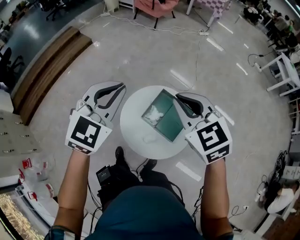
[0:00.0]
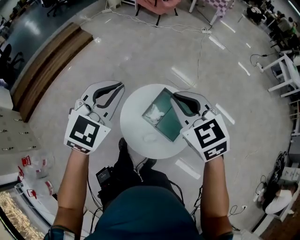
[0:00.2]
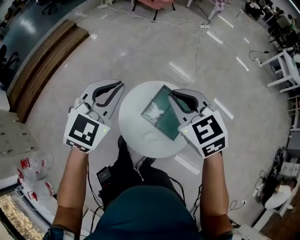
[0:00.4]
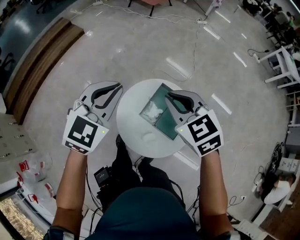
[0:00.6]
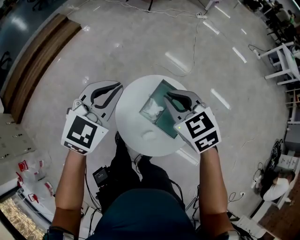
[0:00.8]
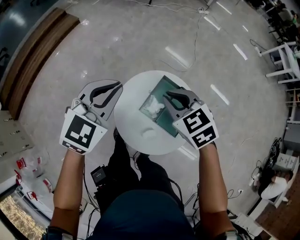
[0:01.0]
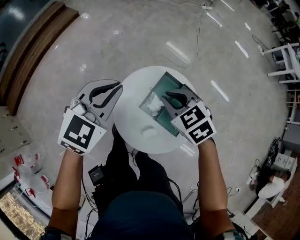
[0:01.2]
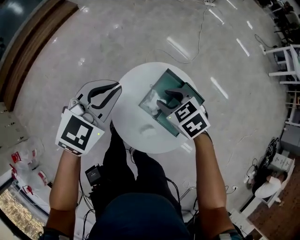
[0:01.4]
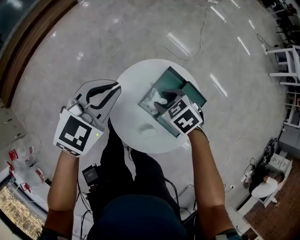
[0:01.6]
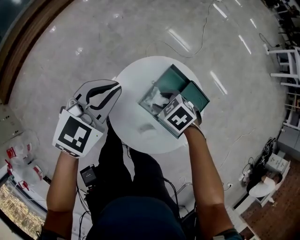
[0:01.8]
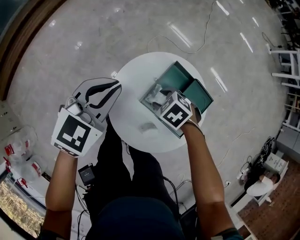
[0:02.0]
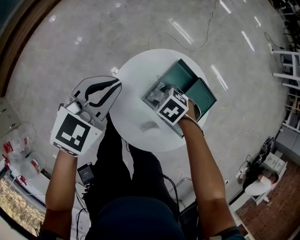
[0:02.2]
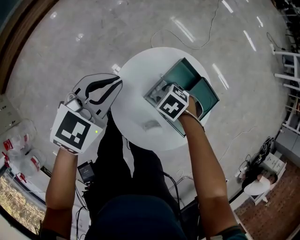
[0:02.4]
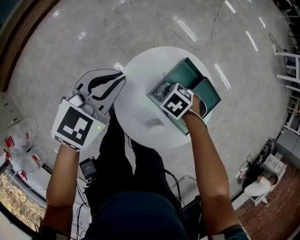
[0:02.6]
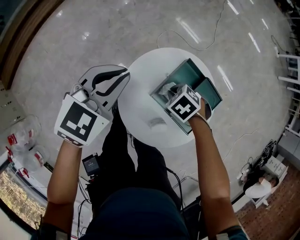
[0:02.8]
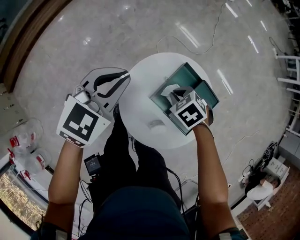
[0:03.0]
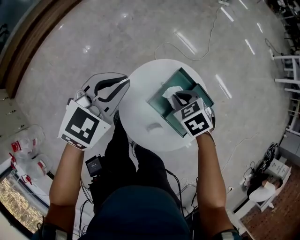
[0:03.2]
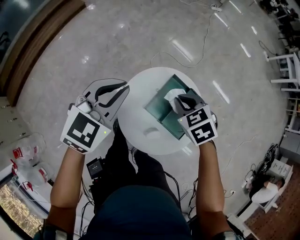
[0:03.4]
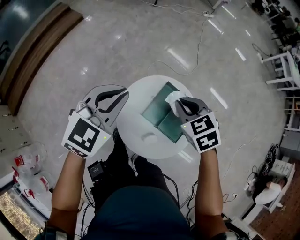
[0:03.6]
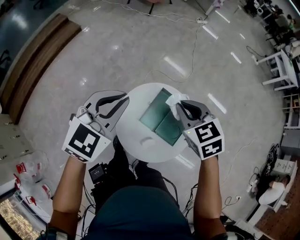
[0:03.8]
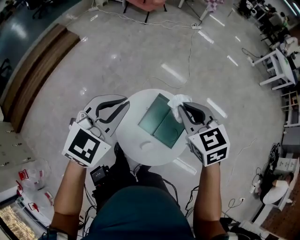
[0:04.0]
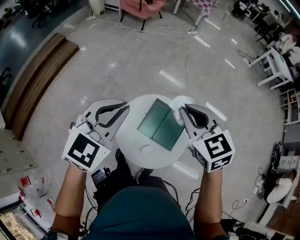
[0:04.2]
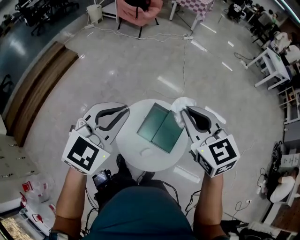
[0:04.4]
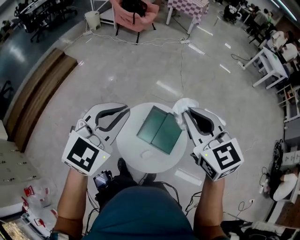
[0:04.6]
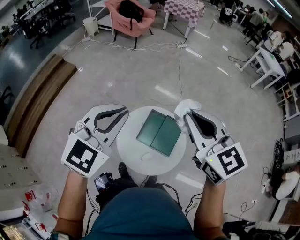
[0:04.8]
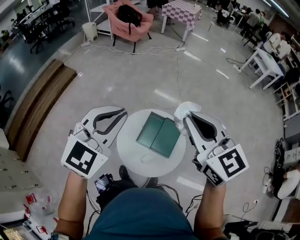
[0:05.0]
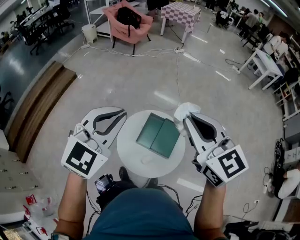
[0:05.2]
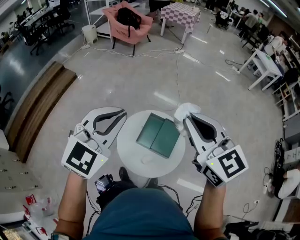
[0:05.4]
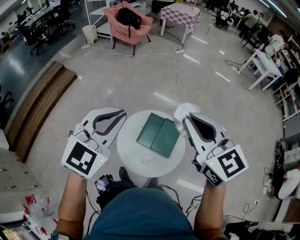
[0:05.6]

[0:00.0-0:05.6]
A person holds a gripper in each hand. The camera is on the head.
0:00.0 to 0:01.4: The right gripper goes about 35 cm downward, turns by some 30 degrees, and opens its fingers, while the left gripper is displaced downward and forward by roughly 30 cm.
0:01.4 to 0:02.8: The left gripper moves downward, some 10 cm. Meanwhile the right gripper shifts about 20 cm downward, changes its angle by roughly 30 degrees, and closes its fingers.
0:02.8 to 0:04.2: The two grippers go about 40 cm upward. The right gripper points its fingers roughly 50 degrees further upward, while the left gripper turns by some 20 degrees.
0:04.2 to 0:05.6: Both grippers travel together upward and backward, approximately 20 cm.

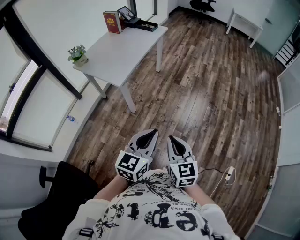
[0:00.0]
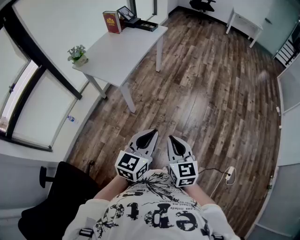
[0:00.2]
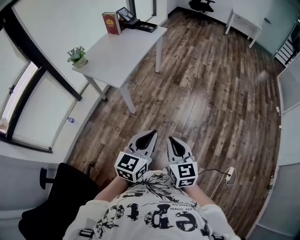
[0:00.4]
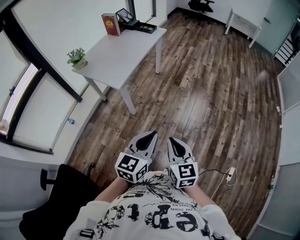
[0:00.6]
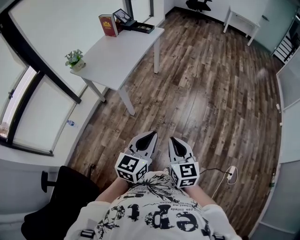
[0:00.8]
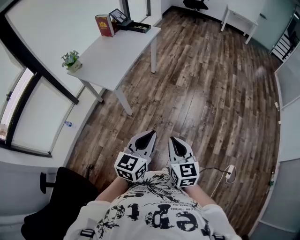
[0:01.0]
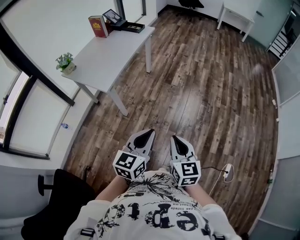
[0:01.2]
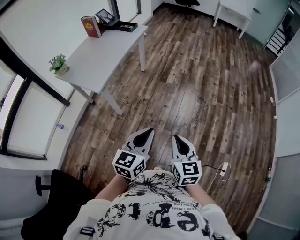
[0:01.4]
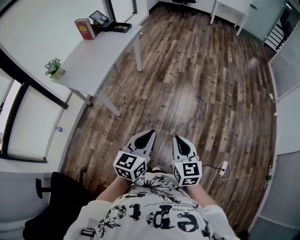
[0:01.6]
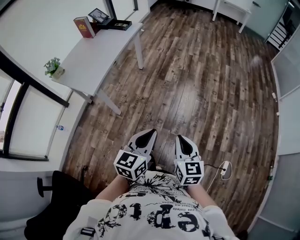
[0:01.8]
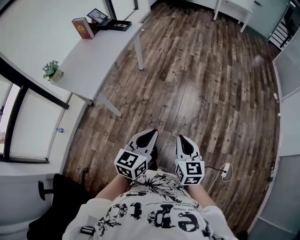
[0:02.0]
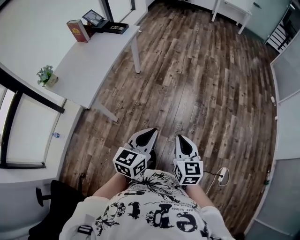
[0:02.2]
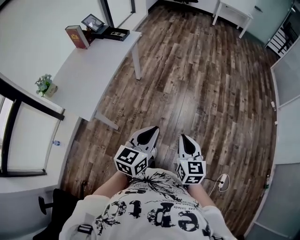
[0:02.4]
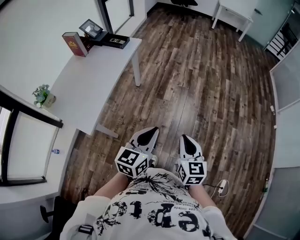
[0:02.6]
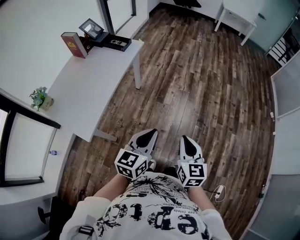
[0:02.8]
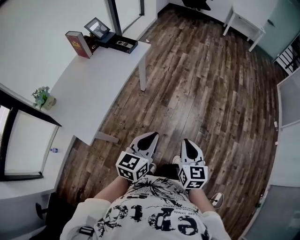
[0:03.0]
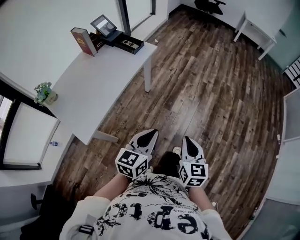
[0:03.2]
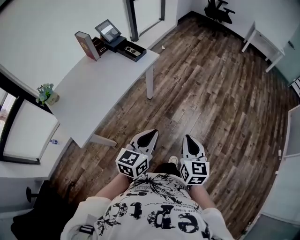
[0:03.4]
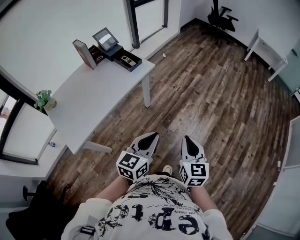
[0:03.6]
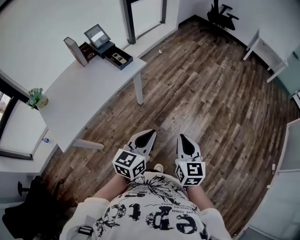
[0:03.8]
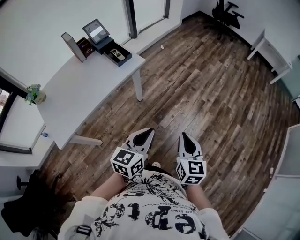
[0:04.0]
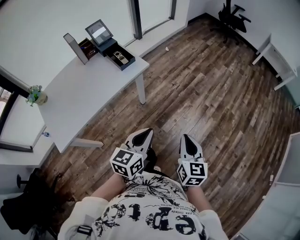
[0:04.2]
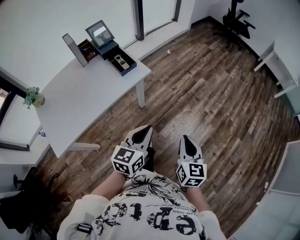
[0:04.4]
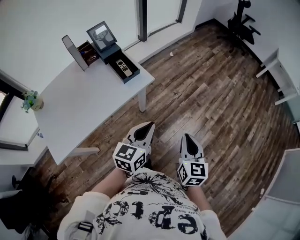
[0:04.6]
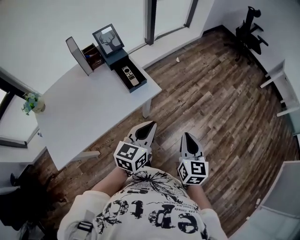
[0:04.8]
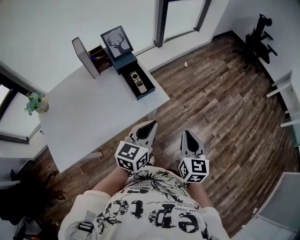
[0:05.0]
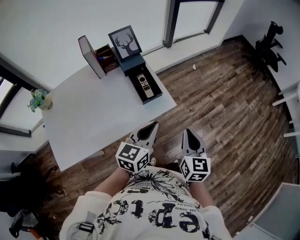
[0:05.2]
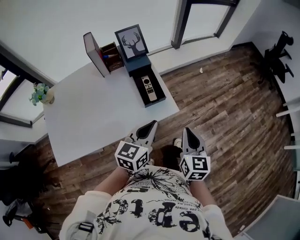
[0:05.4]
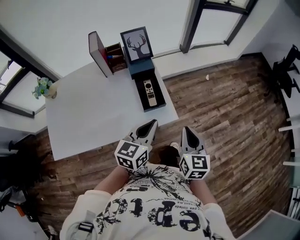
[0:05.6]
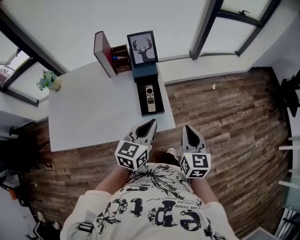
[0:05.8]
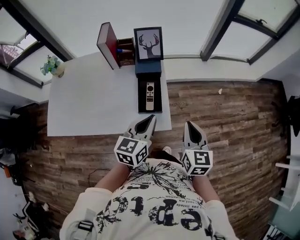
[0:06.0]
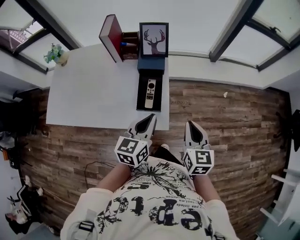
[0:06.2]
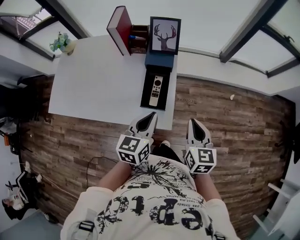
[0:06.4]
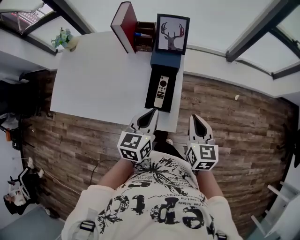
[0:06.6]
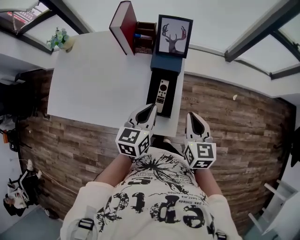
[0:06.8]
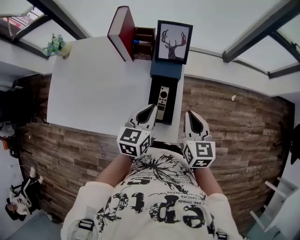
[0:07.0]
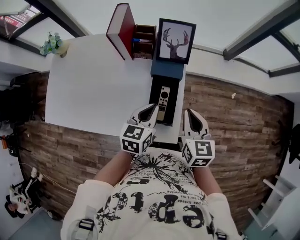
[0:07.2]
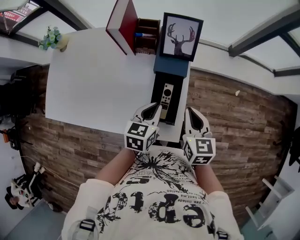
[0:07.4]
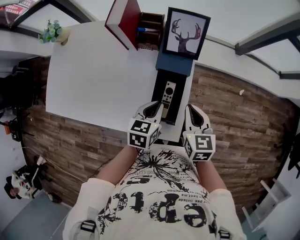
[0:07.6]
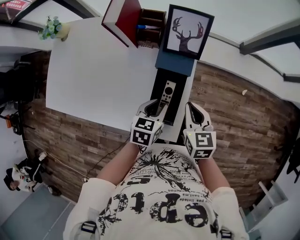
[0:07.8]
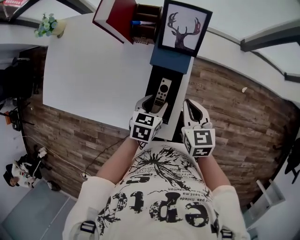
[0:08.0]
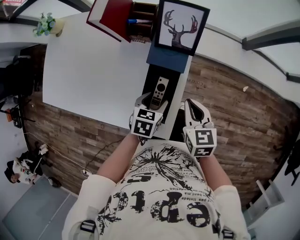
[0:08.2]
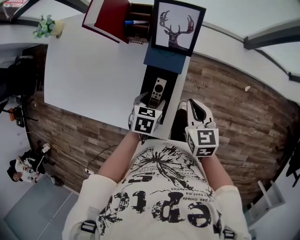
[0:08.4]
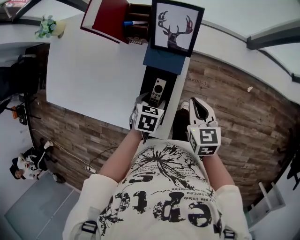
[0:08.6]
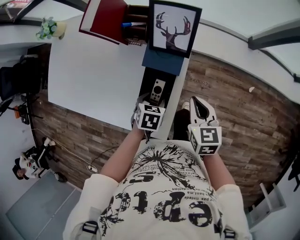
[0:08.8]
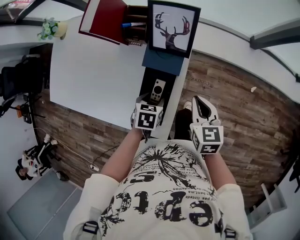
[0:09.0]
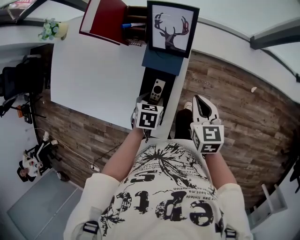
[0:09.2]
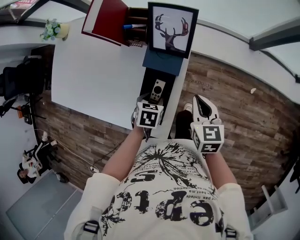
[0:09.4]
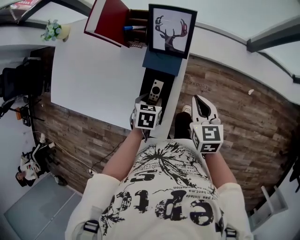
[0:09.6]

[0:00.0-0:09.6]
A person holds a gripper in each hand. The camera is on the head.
0:00.0 to 0:01.6: The left gripper travels to the right and forward by some 15 cm; the right gripper shifts about 15 cm to the right.
0:01.6 to 0:03.2: The pair of grippers is taken forward, about 50 cm.
0:03.2 to 0:04.8: Both grippers are carried forward, approximately 50 cm. The left gripper changes its angle by about 20 degrees.
0:04.8 to 0:06.4: The left gripper ends up roughly 25 cm from where it was, and swivels about 50 degrees. The right gripper shifts by some 40 cm, and rotates approximately 50 degrees.
0:06.4 to 0:08.0: The left gripper travels downward and forward by some 20 cm, rotates approximately 30 degrees, and opens its fingers. The right gripper goes roughly 20 cm forward, downward and to the left, and rotates about 20 degrees.
0:08.0 to 0:09.6: The right gripper travels to the right by about 5 cm.

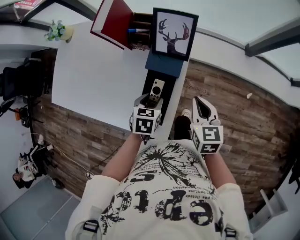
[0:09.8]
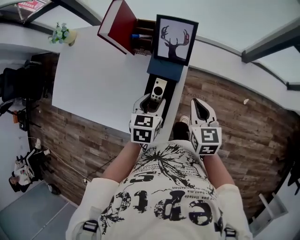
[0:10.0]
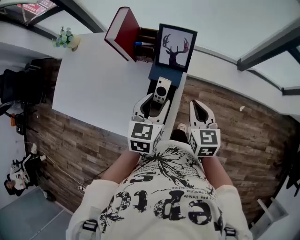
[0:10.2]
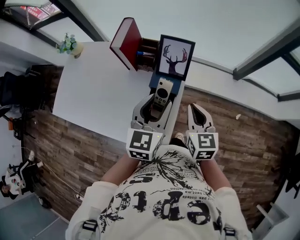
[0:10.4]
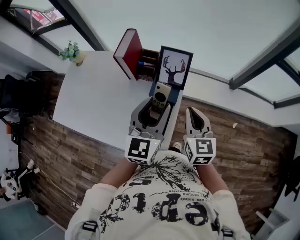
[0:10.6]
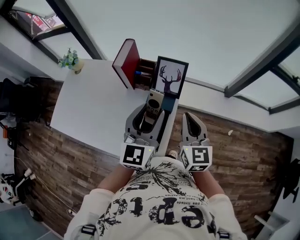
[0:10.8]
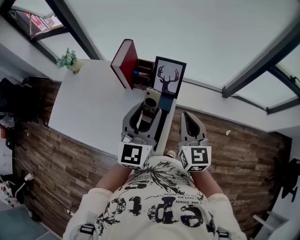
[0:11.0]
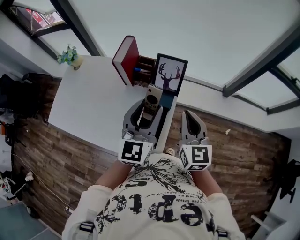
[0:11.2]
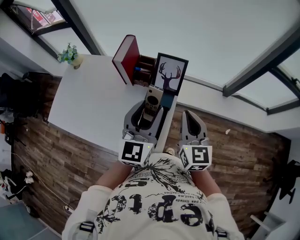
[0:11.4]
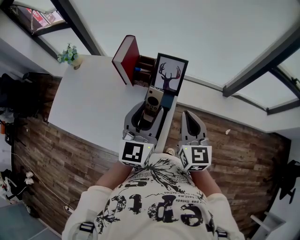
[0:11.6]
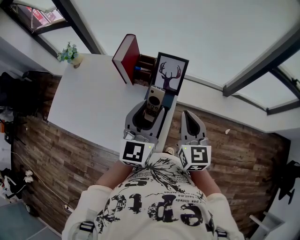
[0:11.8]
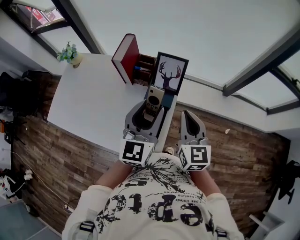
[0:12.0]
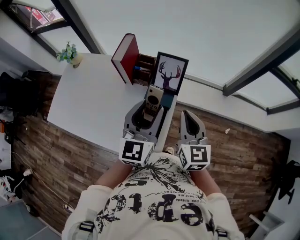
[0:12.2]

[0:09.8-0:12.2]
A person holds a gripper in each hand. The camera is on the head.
0:09.8 to 0:11.0: The right gripper is displaced upward by about 15 cm, and swivels approximately 30 degrees. Meanwhile the left gripper heads upward, covering some 30 cm, and tilts its fingers some 60 degrees upward.
0:11.0 to 0:12.2: There are only small adjustments of the grippers.

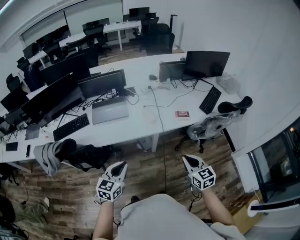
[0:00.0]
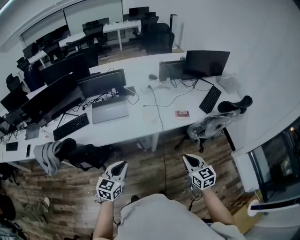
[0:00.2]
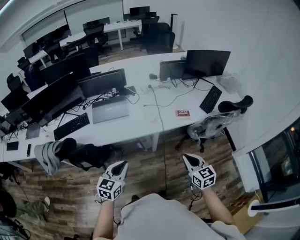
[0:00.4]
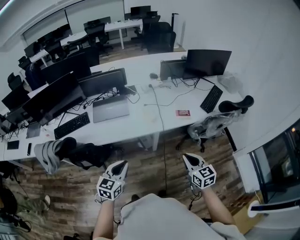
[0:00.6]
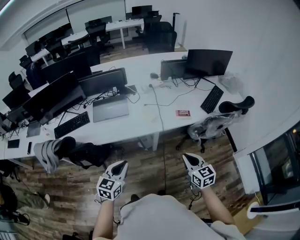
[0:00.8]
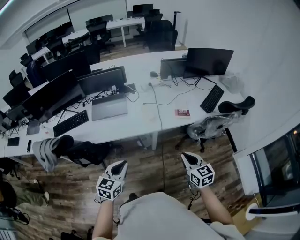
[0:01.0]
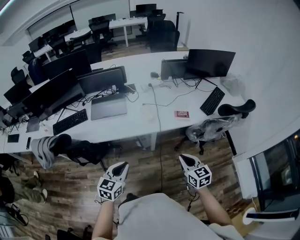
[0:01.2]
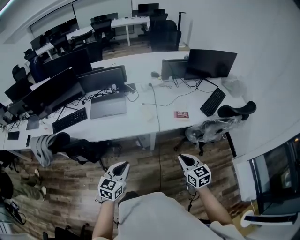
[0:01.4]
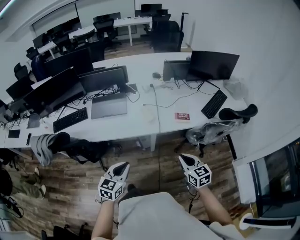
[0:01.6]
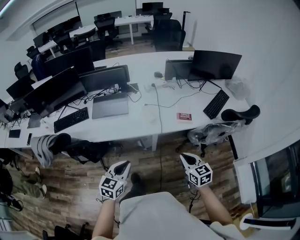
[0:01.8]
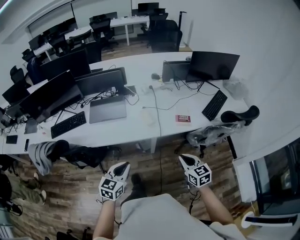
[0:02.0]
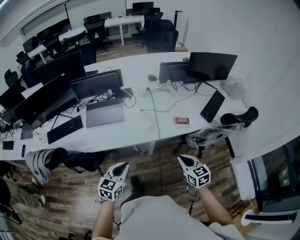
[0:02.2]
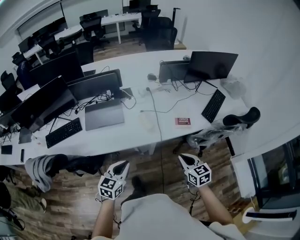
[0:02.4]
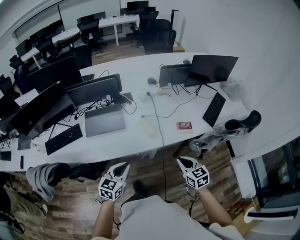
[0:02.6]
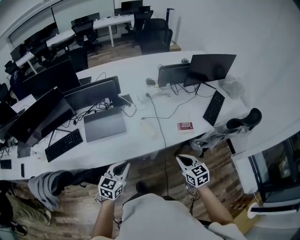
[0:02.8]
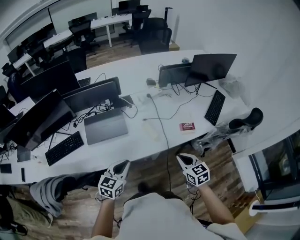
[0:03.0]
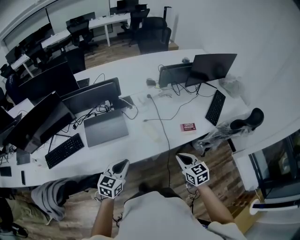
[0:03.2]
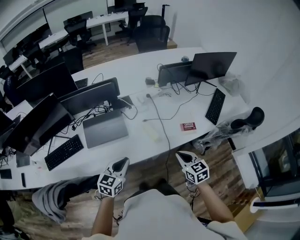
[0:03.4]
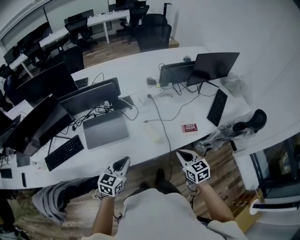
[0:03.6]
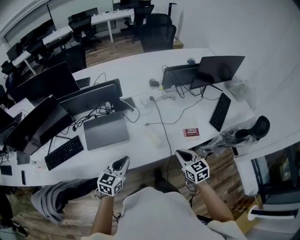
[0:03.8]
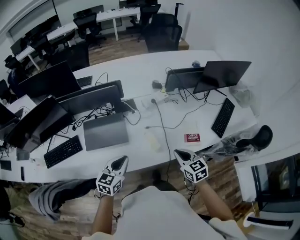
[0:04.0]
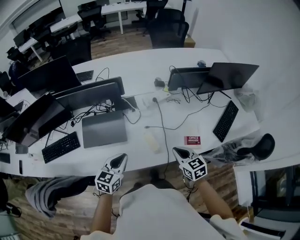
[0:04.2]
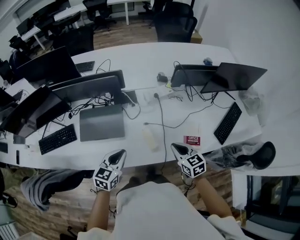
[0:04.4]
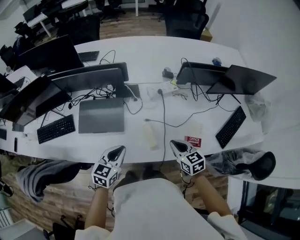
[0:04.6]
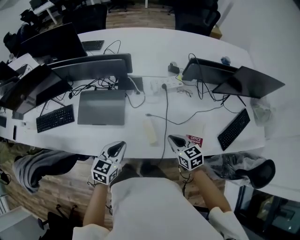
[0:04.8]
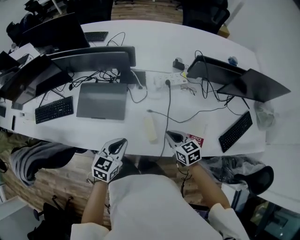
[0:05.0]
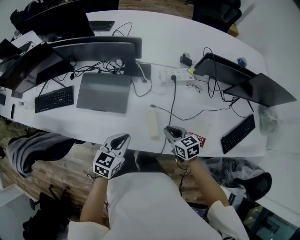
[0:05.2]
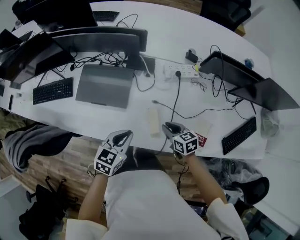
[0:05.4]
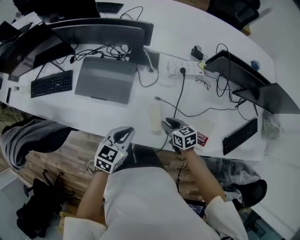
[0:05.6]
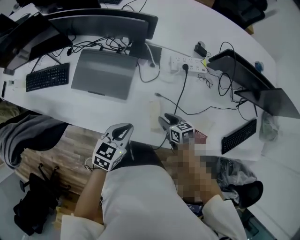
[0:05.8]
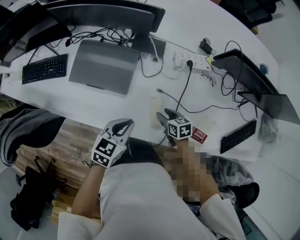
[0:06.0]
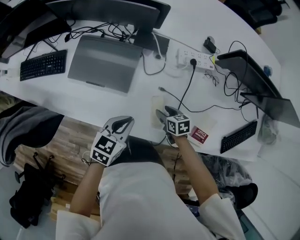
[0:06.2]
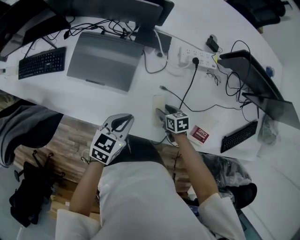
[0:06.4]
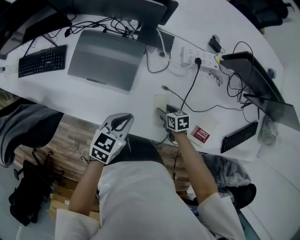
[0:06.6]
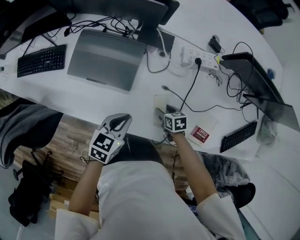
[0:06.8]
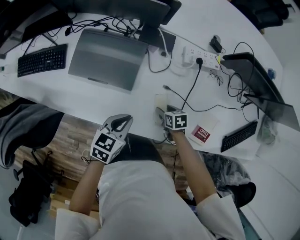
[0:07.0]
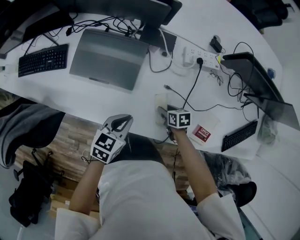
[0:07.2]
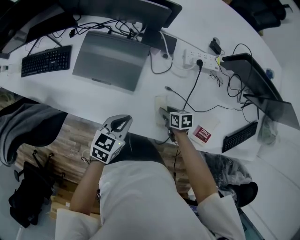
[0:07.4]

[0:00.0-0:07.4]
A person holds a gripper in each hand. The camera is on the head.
0:00.0 to 0:01.4: The right gripper goes some 5 cm to the right, while the left gripper shifts roughly 10 cm to the right.
0:01.4 to 0:03.0: The two grippers go roughly 25 cm forward and to the left.
0:03.0 to 0:04.4: The two grippers go approximately 20 cm forward.
0:04.4 to 0:06.0: The right gripper shifts some 30 cm downward and forward, changes its angle by approximately 30 degrees, and opens. Meanwhile the left gripper heads downward, covering roughly 15 cm.
0:06.0 to 0:07.4: The right gripper heads downward, covering approximately 5 cm; the left gripper goes approximately 5 cm to the left.
